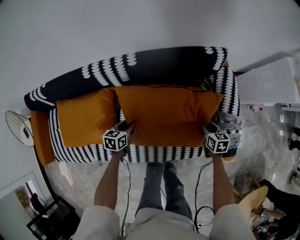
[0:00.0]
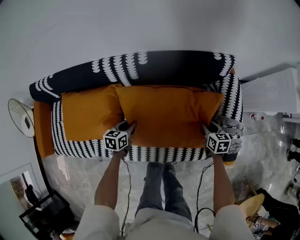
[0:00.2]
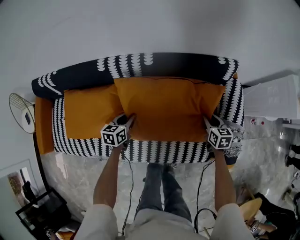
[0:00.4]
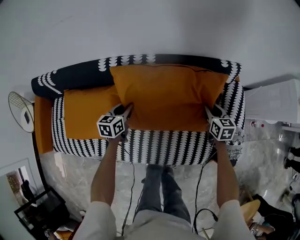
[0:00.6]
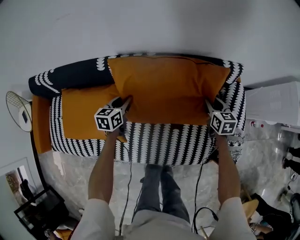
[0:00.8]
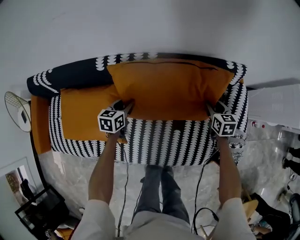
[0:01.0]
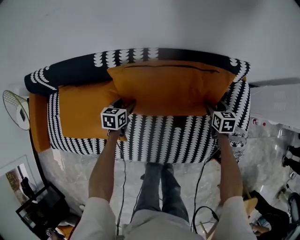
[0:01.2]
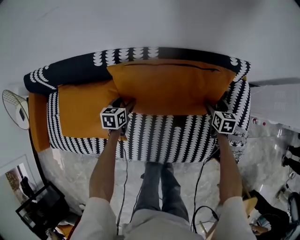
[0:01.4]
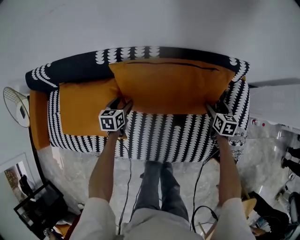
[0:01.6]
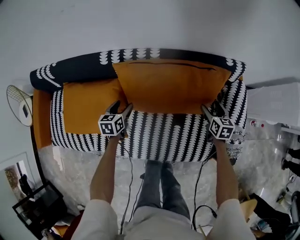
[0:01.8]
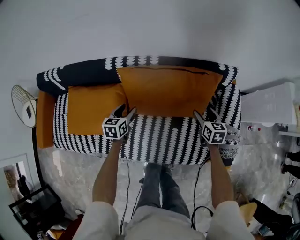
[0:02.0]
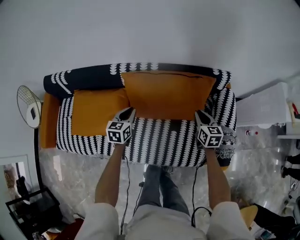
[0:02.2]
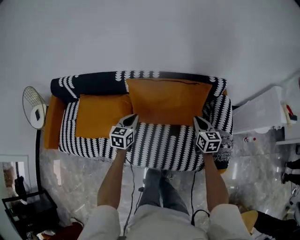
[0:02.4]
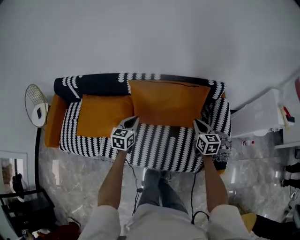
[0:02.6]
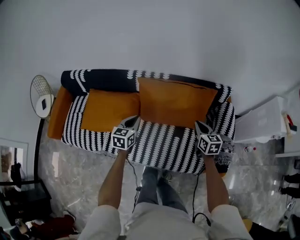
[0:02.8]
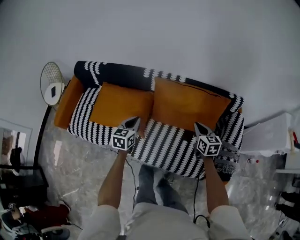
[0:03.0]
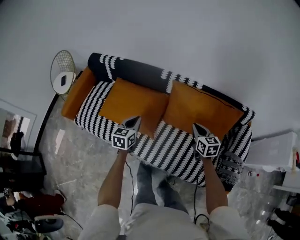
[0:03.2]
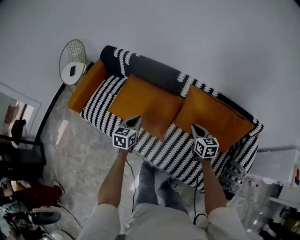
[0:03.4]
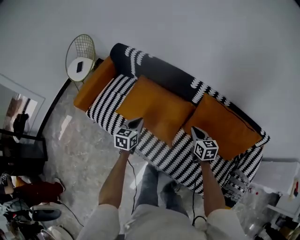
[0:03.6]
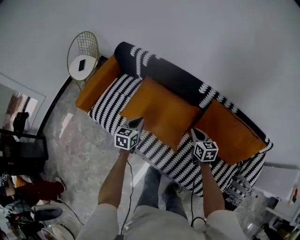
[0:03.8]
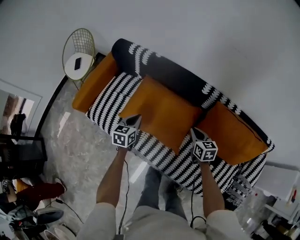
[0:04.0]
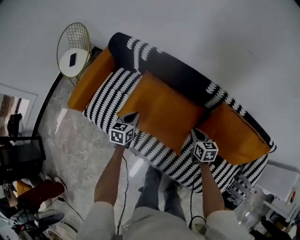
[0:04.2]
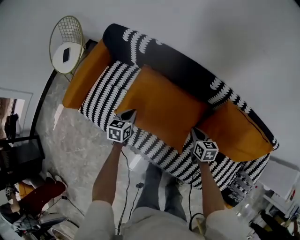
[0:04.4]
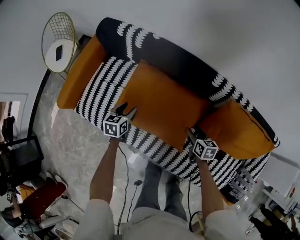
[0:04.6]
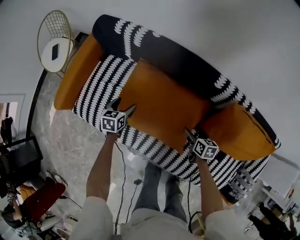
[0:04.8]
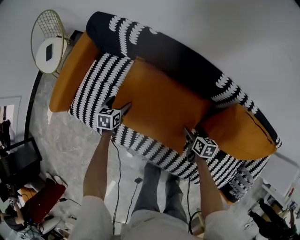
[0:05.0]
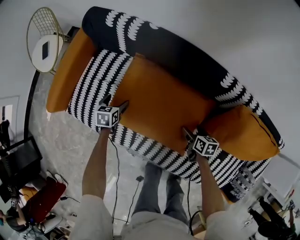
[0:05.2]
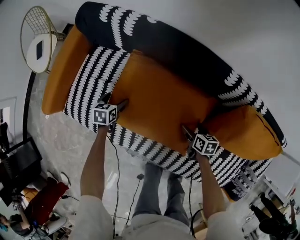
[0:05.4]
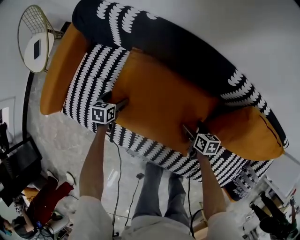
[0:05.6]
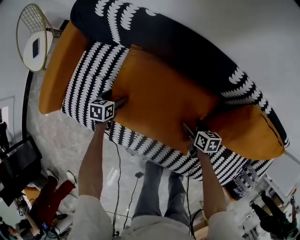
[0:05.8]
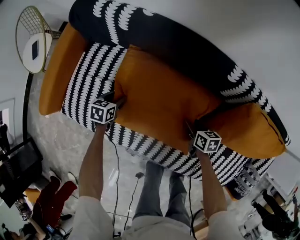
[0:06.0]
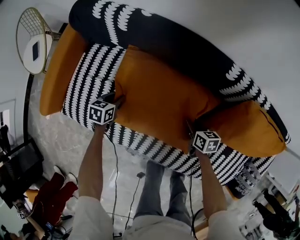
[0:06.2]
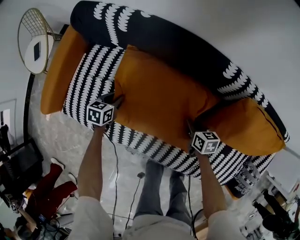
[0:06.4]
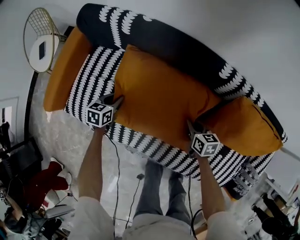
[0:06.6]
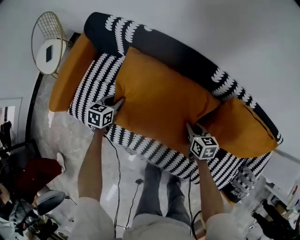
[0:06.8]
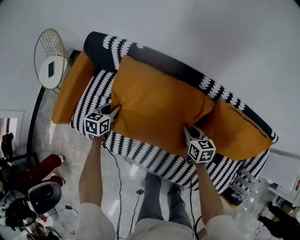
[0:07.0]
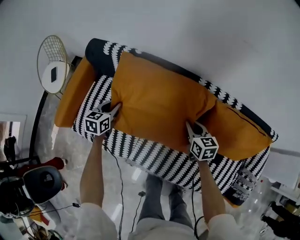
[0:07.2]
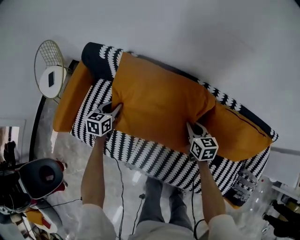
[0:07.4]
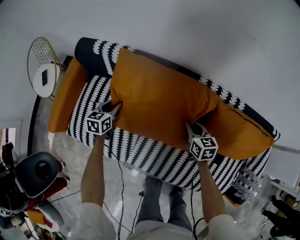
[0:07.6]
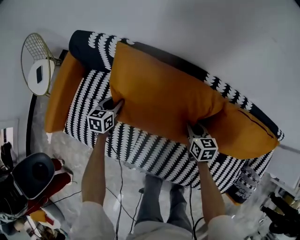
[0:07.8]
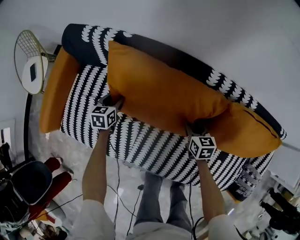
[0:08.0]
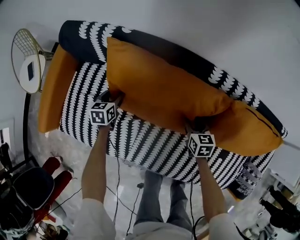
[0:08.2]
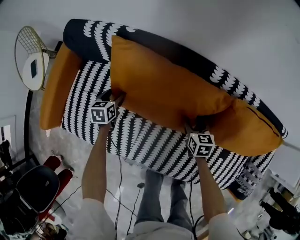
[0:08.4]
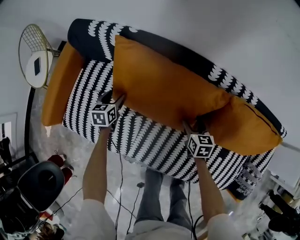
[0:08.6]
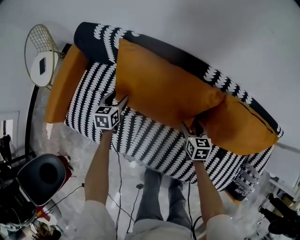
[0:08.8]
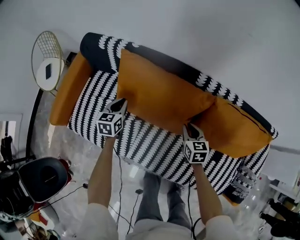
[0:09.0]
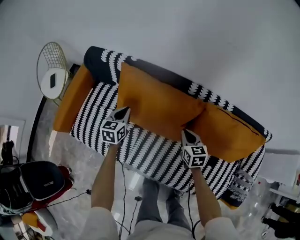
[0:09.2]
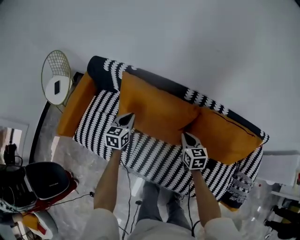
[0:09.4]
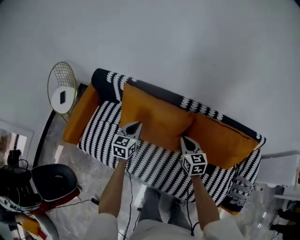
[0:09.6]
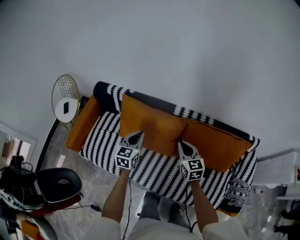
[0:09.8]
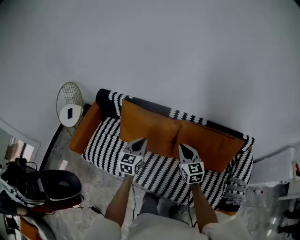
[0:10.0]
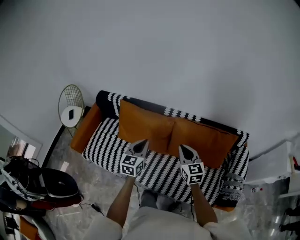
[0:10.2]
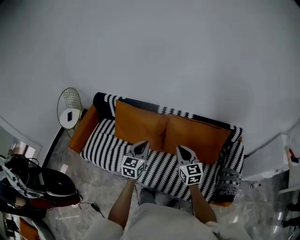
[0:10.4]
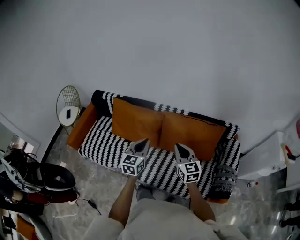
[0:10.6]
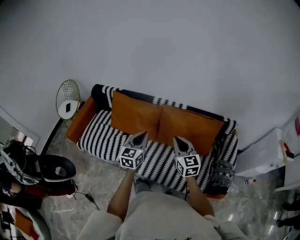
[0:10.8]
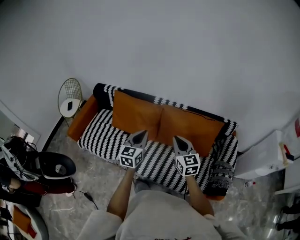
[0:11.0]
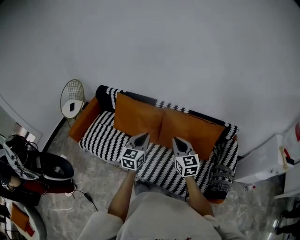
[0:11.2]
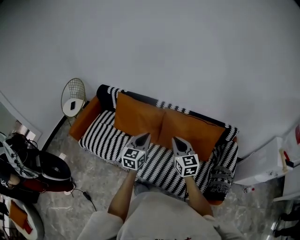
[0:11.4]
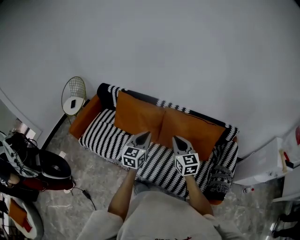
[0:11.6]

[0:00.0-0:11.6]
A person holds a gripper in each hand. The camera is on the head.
0:00.0 to 0:01.4: The right gripper travels forward by approximately 15 cm, and opens. The left gripper travels forward and to the left by some 15 cm, and opens its fingers.
0:01.4 to 0:02.8: The right gripper shifts some 30 cm upward, backward and to the left, turns by some 20 degrees, and closes up. Meanwhile the left gripper shifts about 30 cm upward and backward, turns by approximately 20 degrees, and closes up.
0:02.8 to 0:04.4: The pair of grippers is taken to the left and forward, some 50 cm. The right gripper moves downward, about 15 cm, and changes its angle by some 30 degrees. Meanwhile the left gripper swivels some 20 degrees.
0:04.4 to 0:05.8: The right gripper goes some 15 cm downward, rotates approximately 20 degrees, and opens up. Meanwhile the left gripper moves downward and forward, roughly 20 cm, and opens up.
0:05.8 to 0:07.2: The grippers both shift upward by about 25 cm. The left gripper turns by some 20 degrees, and closes its fingers, while the right gripper turns by approximately 30 degrees, and closes.
0:07.2 to 0:08.8: The two grippers go roughly 10 cm downward. The left gripper opens its fingers; the right gripper opens.
0:08.8 to 0:10.2: The left gripper is displaced upward, to the right and backward by about 60 cm, turns by some 30 degrees, and closes; the right gripper travels upward and backward by some 40 cm, tips its fingers upward by approximately 30 degrees, and closes up.
0:10.2 to 0:11.6: The left gripper shifts roughly 15 cm to the right, backward and upward; the right gripper is displaced backward, upward and to the right by some 10 cm.

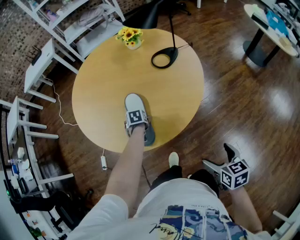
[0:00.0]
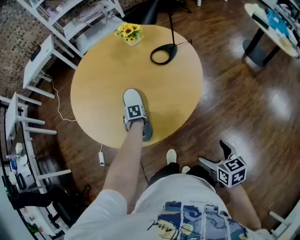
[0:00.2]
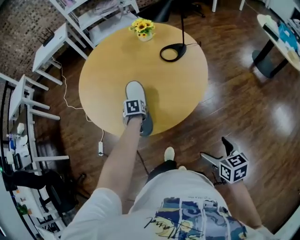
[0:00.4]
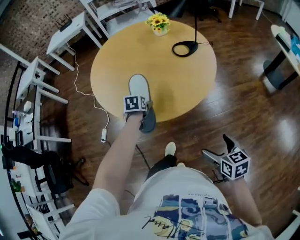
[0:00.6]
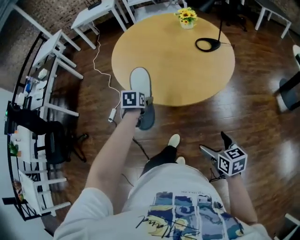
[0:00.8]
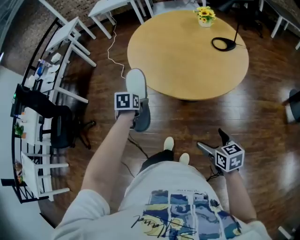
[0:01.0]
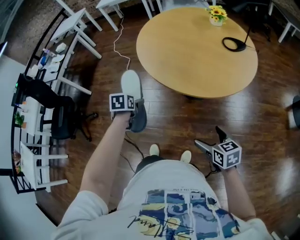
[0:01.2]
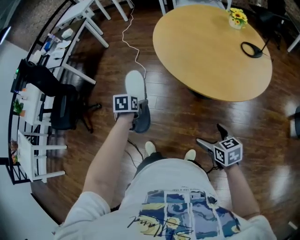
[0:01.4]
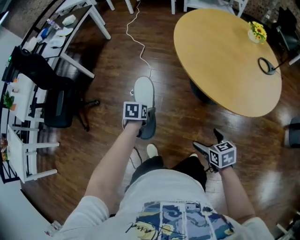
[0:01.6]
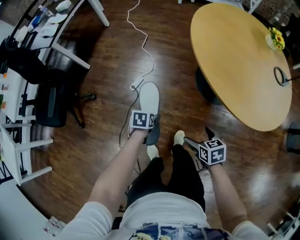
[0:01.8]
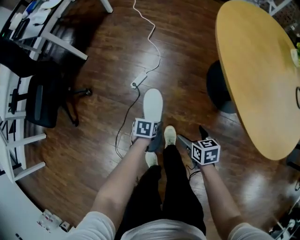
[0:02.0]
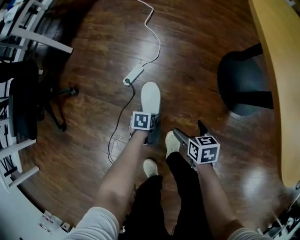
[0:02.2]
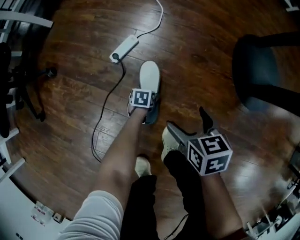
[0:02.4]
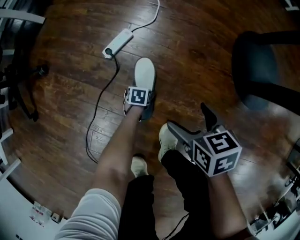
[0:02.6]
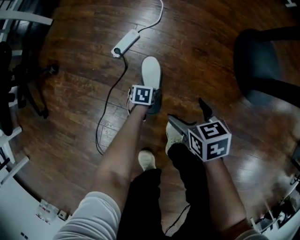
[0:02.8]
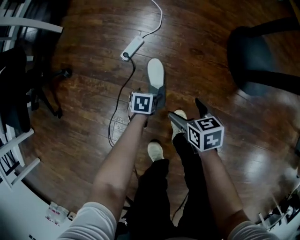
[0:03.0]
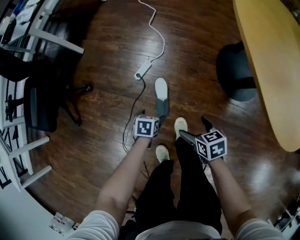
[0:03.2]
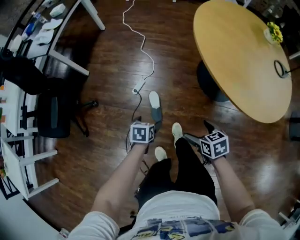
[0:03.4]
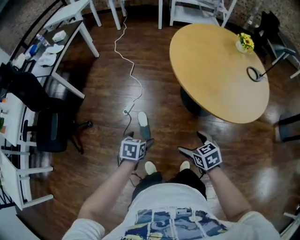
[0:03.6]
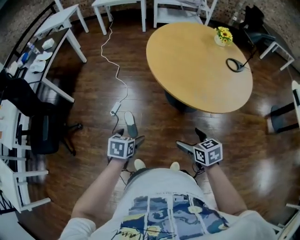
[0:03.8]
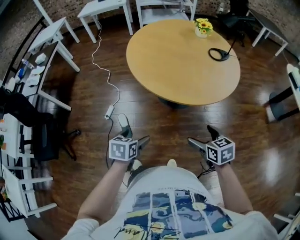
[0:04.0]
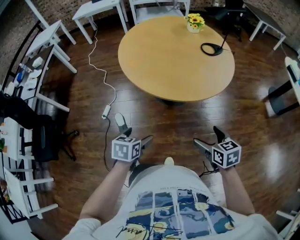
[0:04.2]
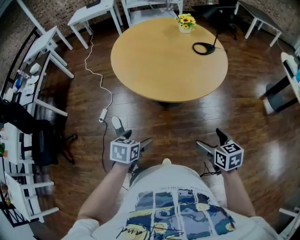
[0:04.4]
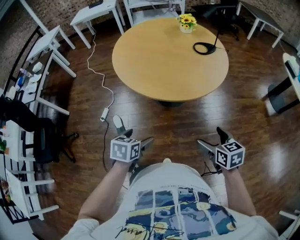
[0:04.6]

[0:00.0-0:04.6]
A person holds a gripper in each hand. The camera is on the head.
0:00.0 to 0:01.6: The pair of grippers is taken about 50 cm. The left gripper rotates roughly 30 degrees; the right gripper changes its angle by approximately 50 degrees.
0:01.6 to 0:03.0: The right gripper travels downward, to the left and forward by some 70 cm. The left gripper heads downward, covering approximately 60 cm.
0:03.0 to 0:04.6: The two grippers travel together, about 70 cm. The right gripper swivels roughly 30 degrees. Meanwhile the left gripper goes about 80 cm upward, and swivels approximately 30 degrees.

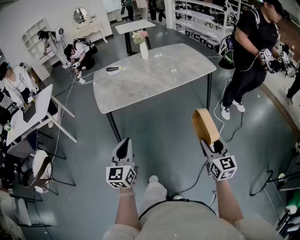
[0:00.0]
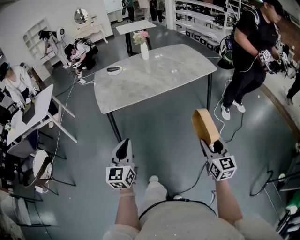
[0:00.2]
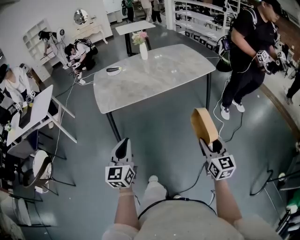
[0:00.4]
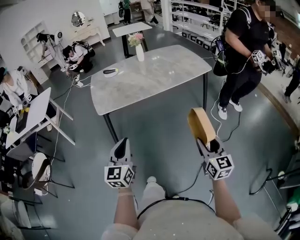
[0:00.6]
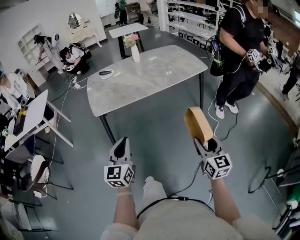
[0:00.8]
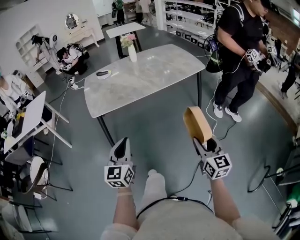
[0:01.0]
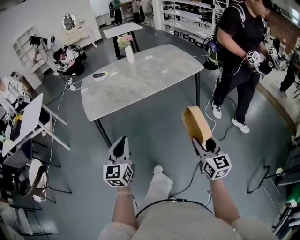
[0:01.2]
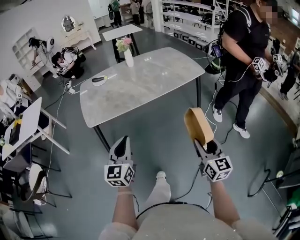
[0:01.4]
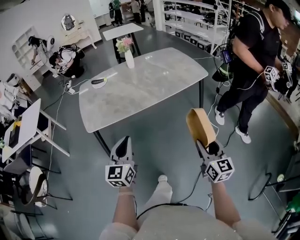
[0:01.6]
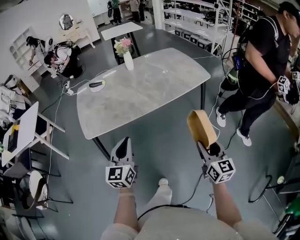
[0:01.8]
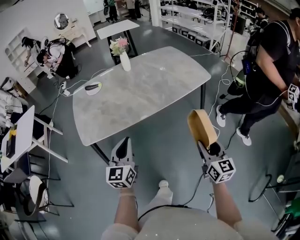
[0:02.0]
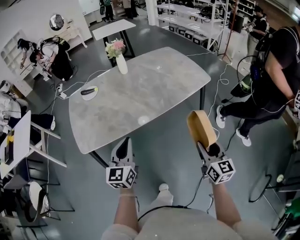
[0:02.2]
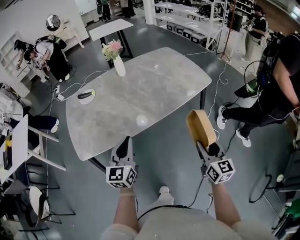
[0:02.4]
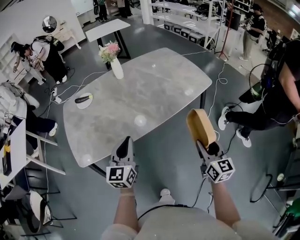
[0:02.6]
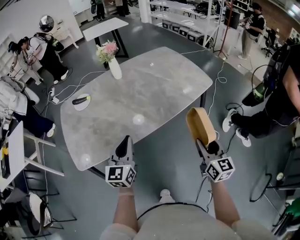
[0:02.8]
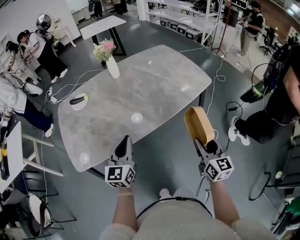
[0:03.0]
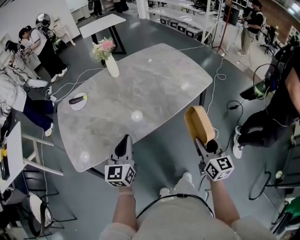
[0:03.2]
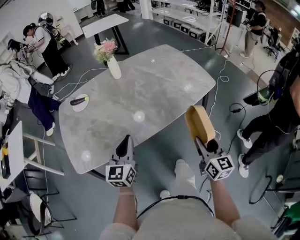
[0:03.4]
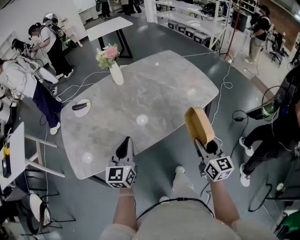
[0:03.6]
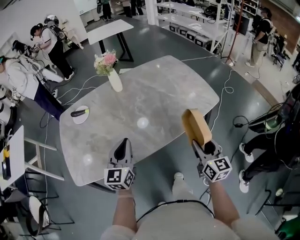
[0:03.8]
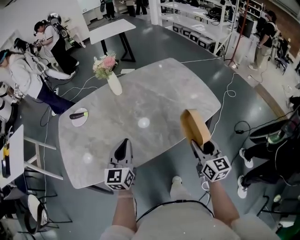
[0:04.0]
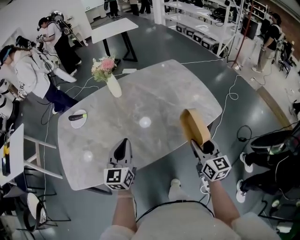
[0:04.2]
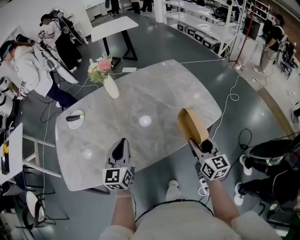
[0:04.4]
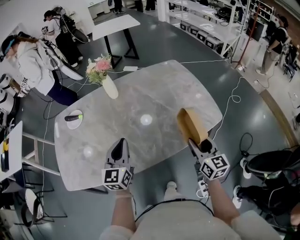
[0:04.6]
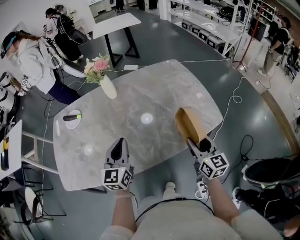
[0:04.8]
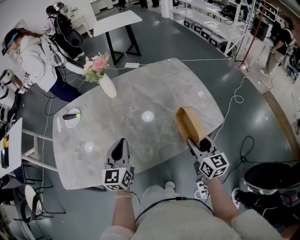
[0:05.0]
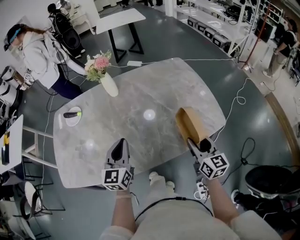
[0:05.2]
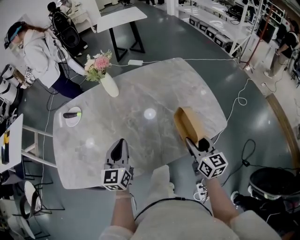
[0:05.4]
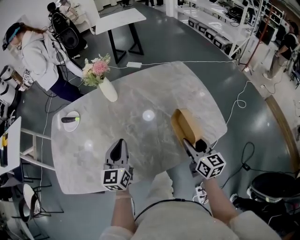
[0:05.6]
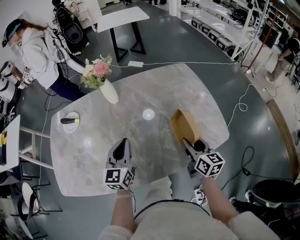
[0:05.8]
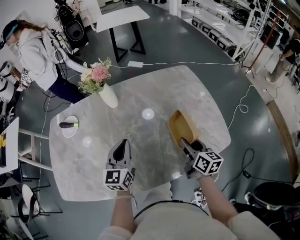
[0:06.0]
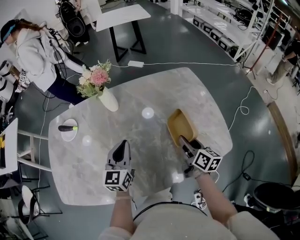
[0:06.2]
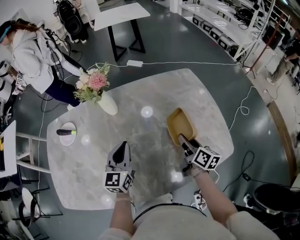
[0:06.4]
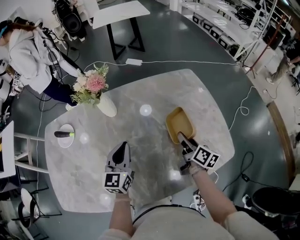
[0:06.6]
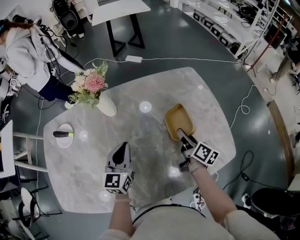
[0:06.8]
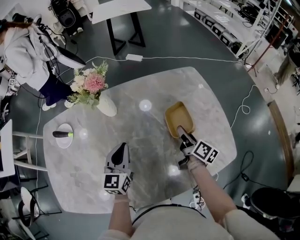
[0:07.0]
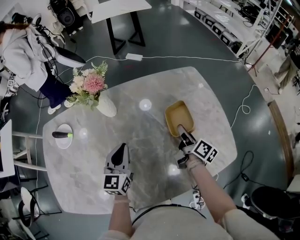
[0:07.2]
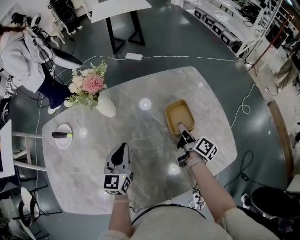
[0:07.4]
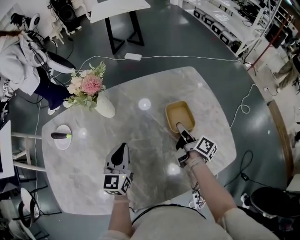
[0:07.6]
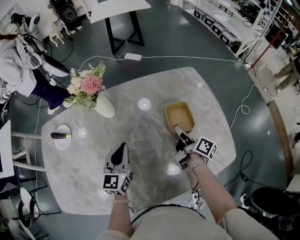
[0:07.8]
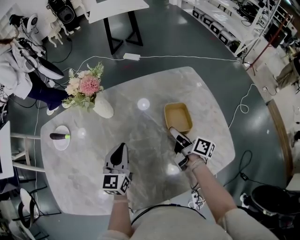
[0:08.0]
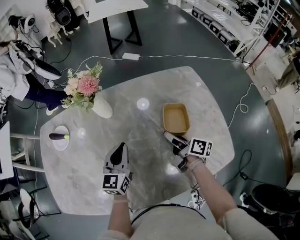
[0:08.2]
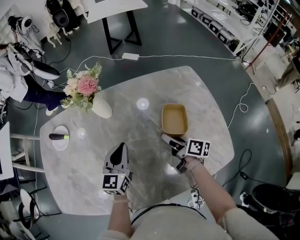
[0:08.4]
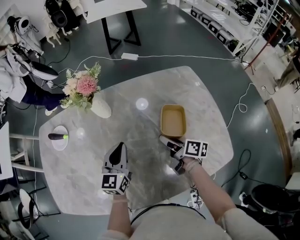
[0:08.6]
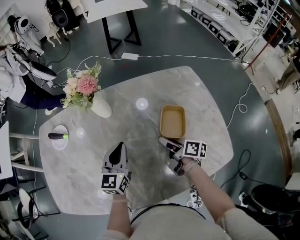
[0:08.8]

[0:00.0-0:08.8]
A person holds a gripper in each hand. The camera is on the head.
0:00.0 to 0:01.4: The right gripper ends up about 5 cm from where it was. The left gripper heads forward and to the right, covering approximately 10 cm.
0:01.4 to 0:03.0: Both grippers move forward, some 30 cm.
0:03.0 to 0:04.4: Both grippers travel together forward, some 20 cm.
0:04.4 to 0:05.8: Both grippers move forward, roughly 10 cm.
0:05.8 to 0:07.4: The left gripper moves forward, some 10 cm. The right gripper goes some 20 cm forward, and twists approximately 50 degrees clockwise, seen from behind.
0:07.4 to 0:08.8: The right gripper shifts approximately 10 cm to the left, rotates roughly 30 degrees, and opens up.
